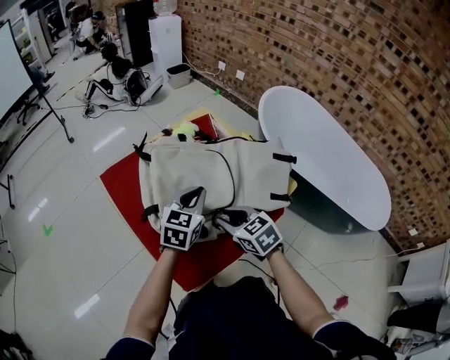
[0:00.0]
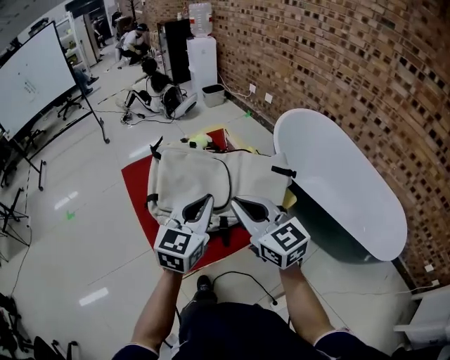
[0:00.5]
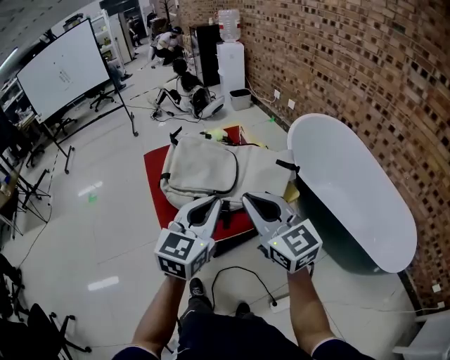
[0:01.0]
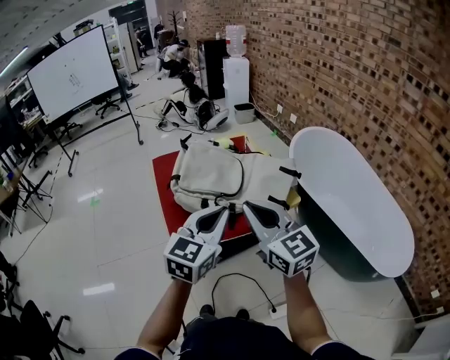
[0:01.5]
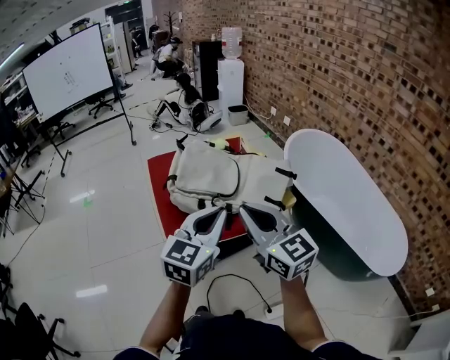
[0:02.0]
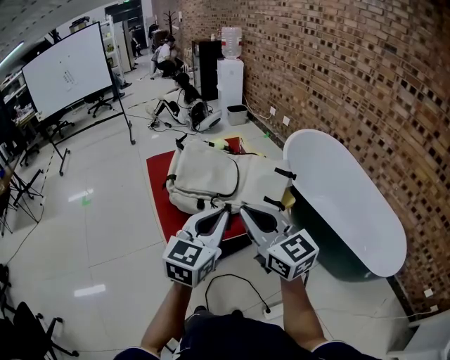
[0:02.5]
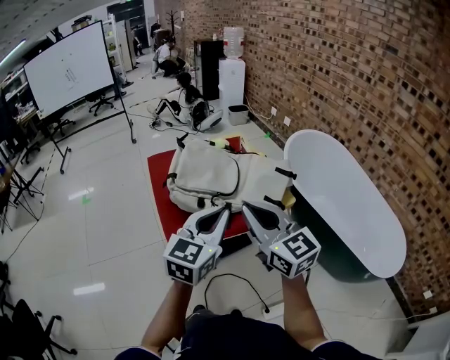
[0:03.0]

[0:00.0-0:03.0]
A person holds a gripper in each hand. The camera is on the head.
0:00.0 to 0:01.5: The left gripper travels backward and upward by approximately 30 cm, and changes its angle by some 20 degrees, while the right gripper moves upward and backward, about 30 cm, tips its fingers upward by roughly 40 degrees, and closes.
0:01.5 to 0:03.0: The grippers stay close to where they were, moving slightly.

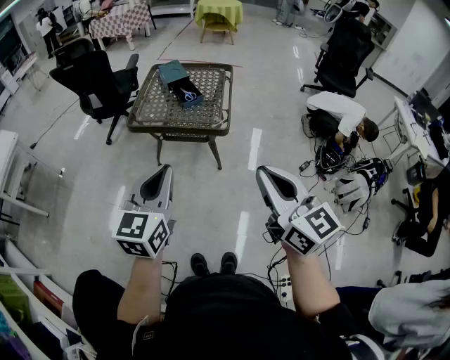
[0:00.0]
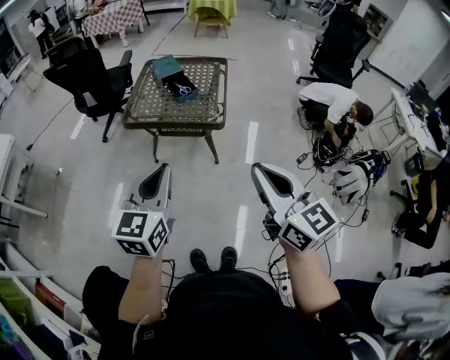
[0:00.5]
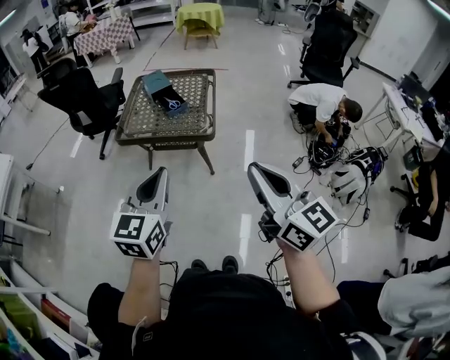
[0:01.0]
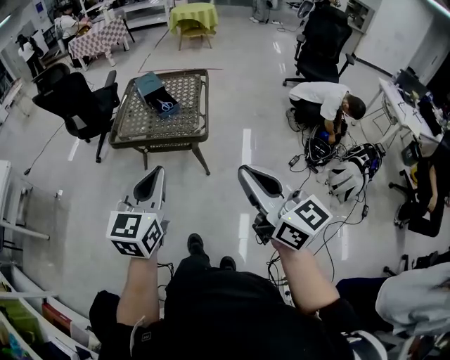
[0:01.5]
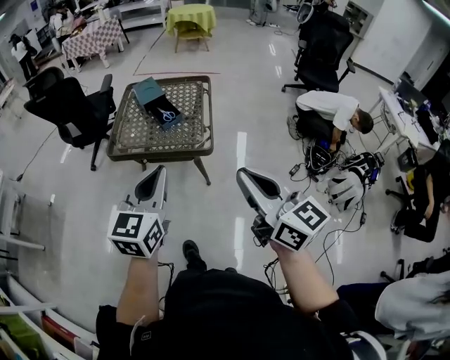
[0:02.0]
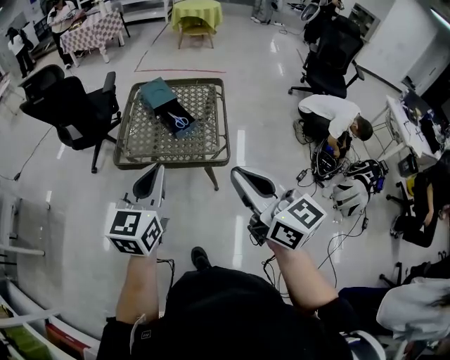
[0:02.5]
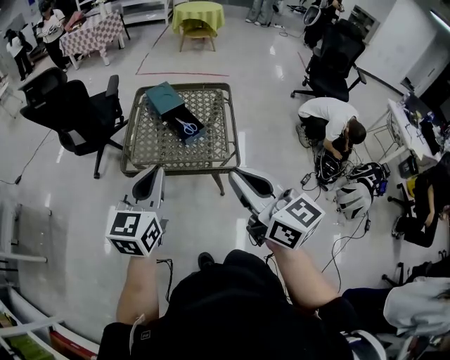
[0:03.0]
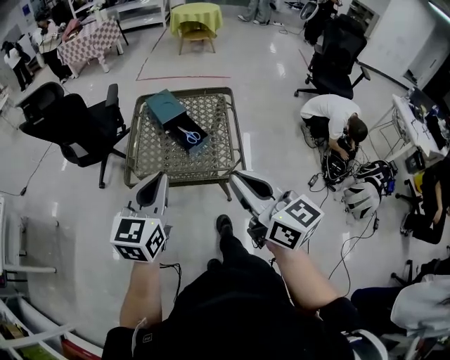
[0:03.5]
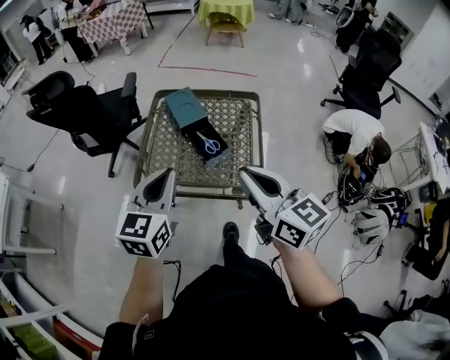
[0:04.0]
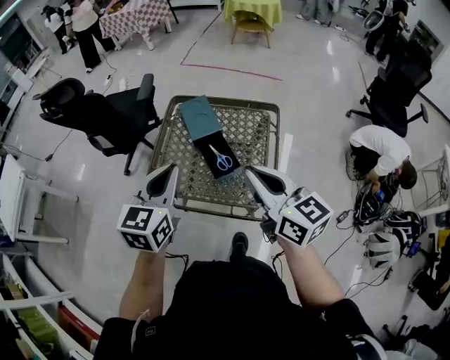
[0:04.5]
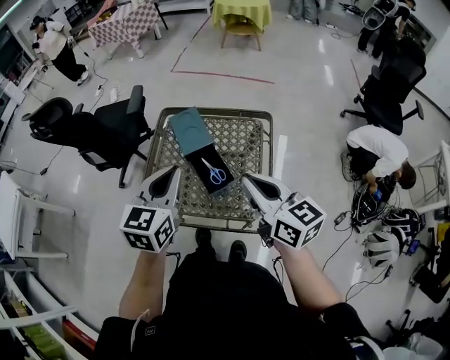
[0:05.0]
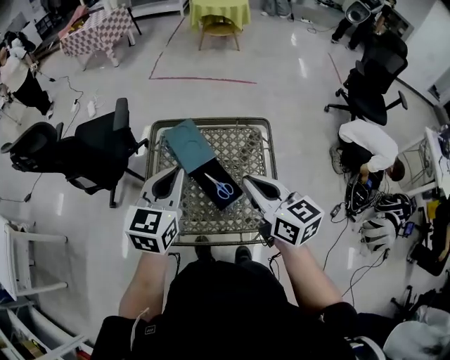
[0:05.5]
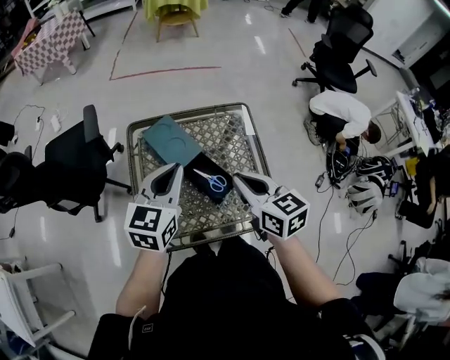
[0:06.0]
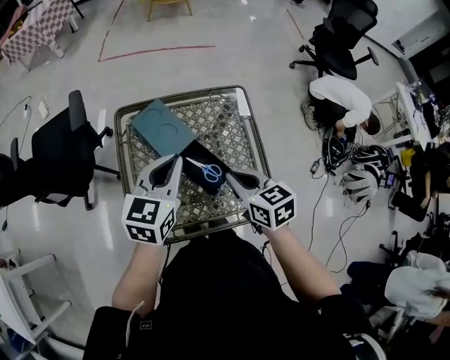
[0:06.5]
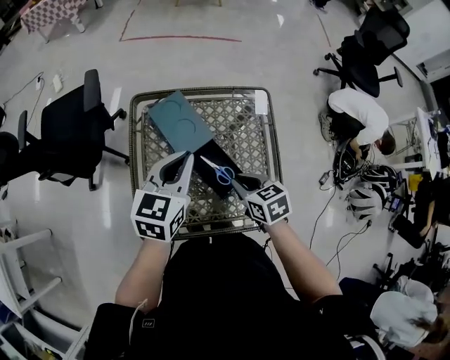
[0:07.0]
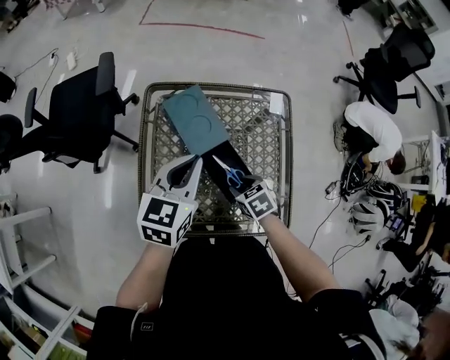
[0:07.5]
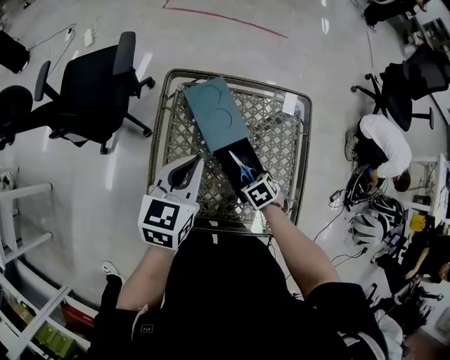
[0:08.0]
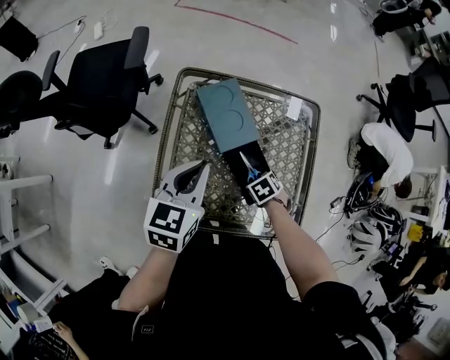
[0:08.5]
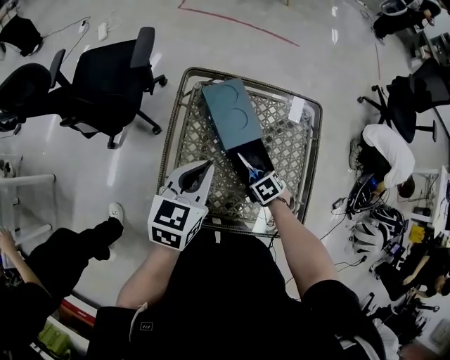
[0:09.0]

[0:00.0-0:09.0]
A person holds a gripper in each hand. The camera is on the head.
0:00.0 to 0:02.0: The two grippers go approximately 10 cm forward.
0:02.0 to 0:04.5: The two grippers go approximately 40 cm forward.
0:04.5 to 0:07.0: The right gripper moves downward and forward, roughly 30 cm, and points its fingers approximately 40 degrees further downward, while the left gripper is displaced forward and downward by roughly 20 cm, and changes its angle by roughly 20 degrees.
0:07.0 to 0:09.0: The right gripper goes approximately 15 cm downward, and tips its fingers downward by some 30 degrees; the left gripper moves roughly 10 cm.

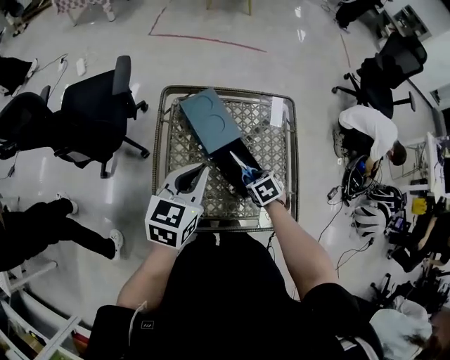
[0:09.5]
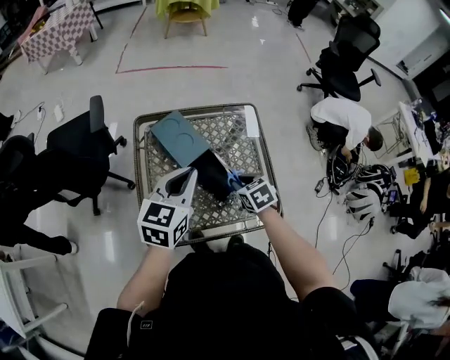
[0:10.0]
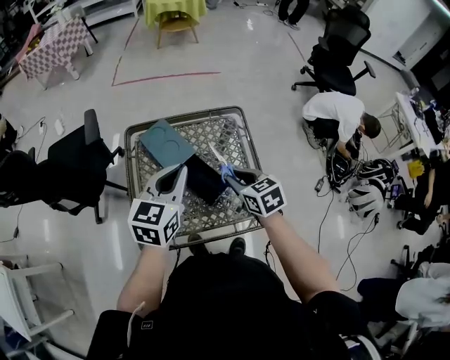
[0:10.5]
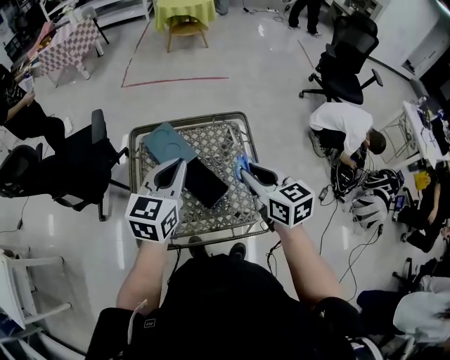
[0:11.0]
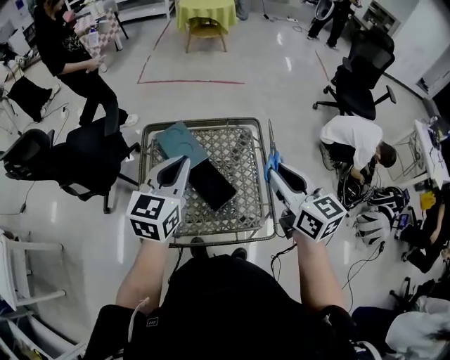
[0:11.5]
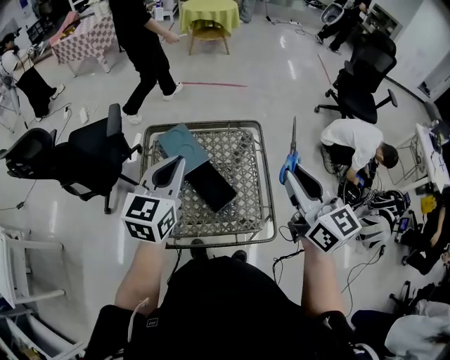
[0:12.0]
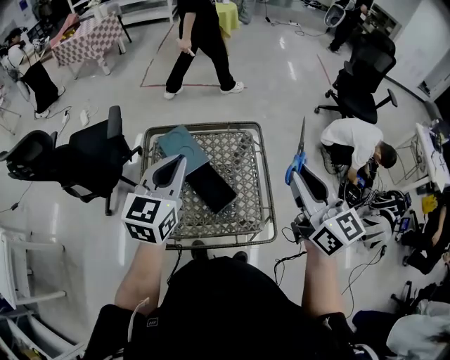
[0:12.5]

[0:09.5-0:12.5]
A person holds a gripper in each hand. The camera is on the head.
0:09.5 to 0:11.0: The right gripper travels upward by roughly 30 cm, and points its fingers approximately 50 degrees further upward. Meanwhile the left gripper goes approximately 15 cm to the right and upward.
0:11.0 to 0:12.5: The left gripper changes place by some 5 cm. The right gripper shifts approximately 15 cm upward and to the right, and swivels some 20 degrees.

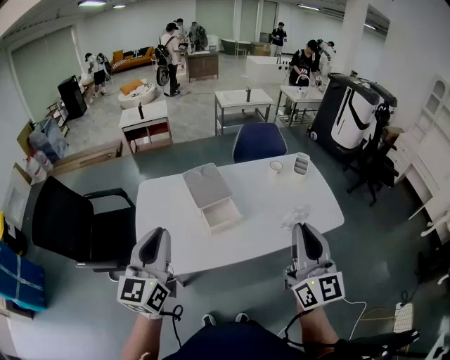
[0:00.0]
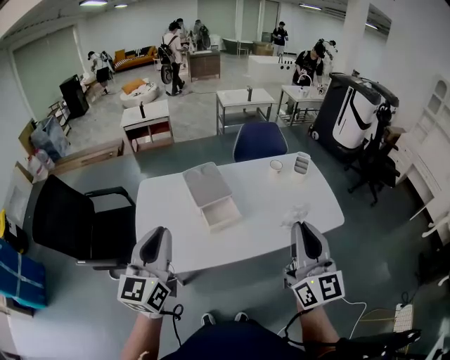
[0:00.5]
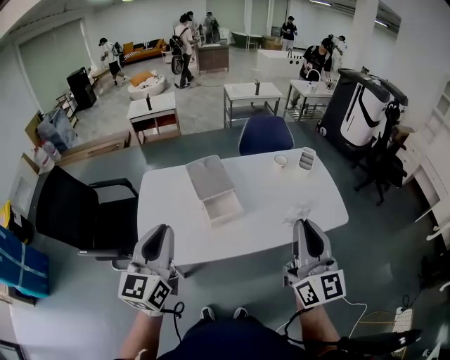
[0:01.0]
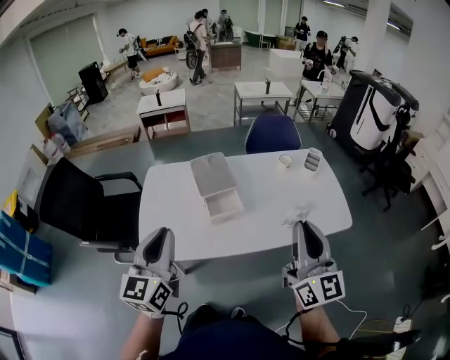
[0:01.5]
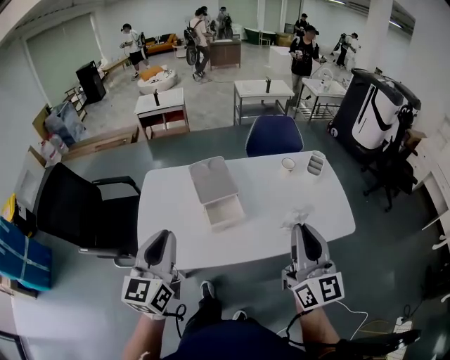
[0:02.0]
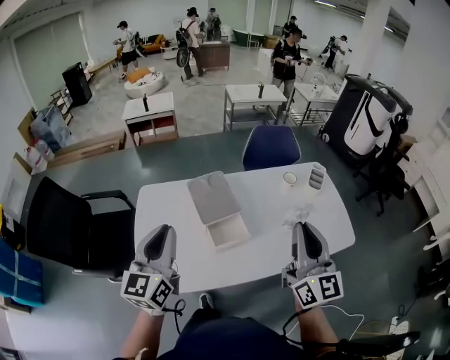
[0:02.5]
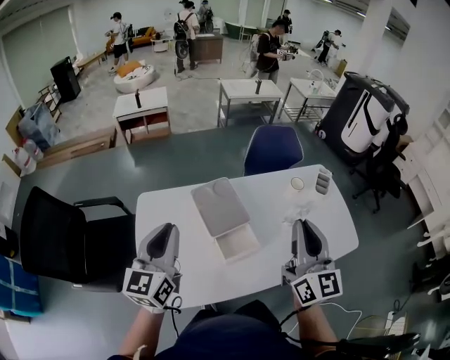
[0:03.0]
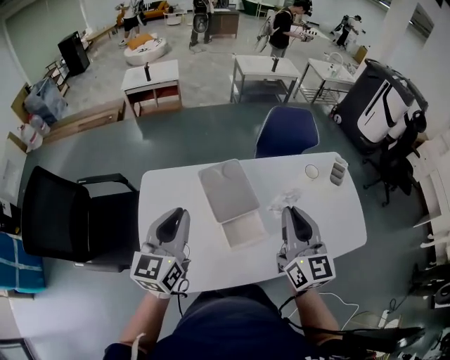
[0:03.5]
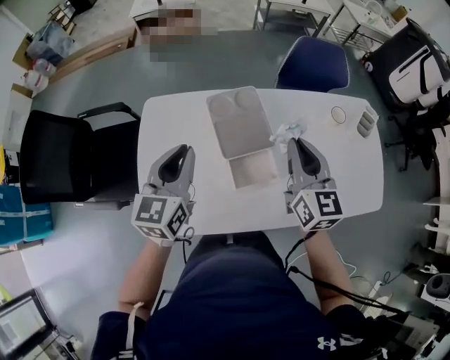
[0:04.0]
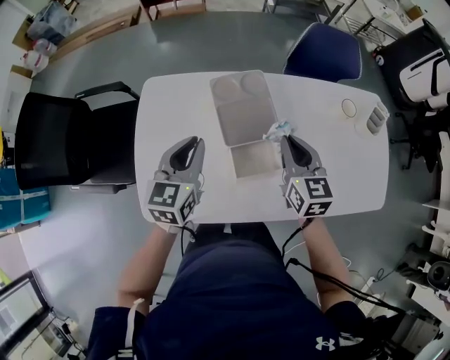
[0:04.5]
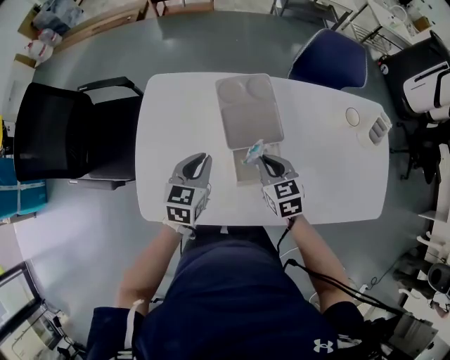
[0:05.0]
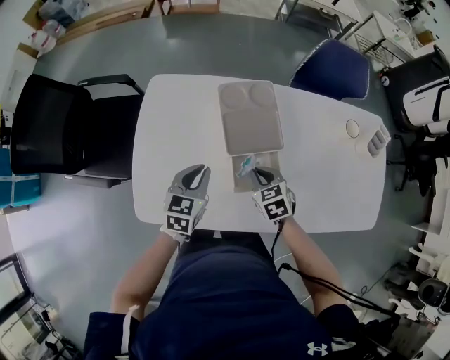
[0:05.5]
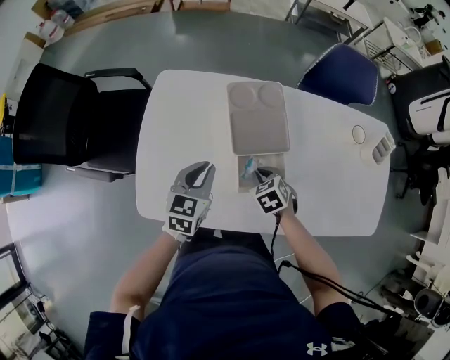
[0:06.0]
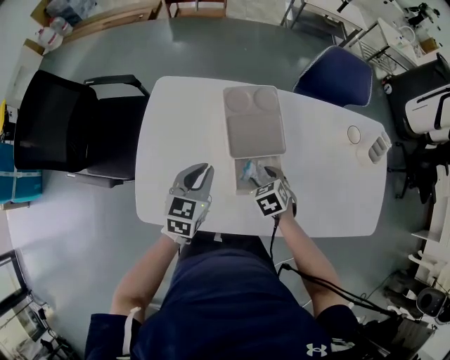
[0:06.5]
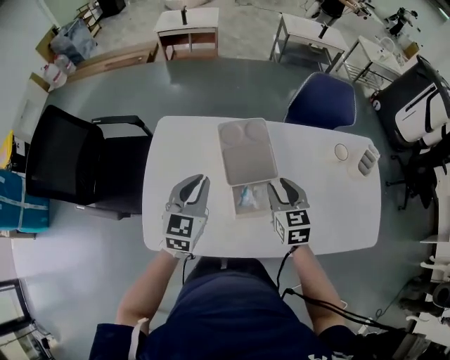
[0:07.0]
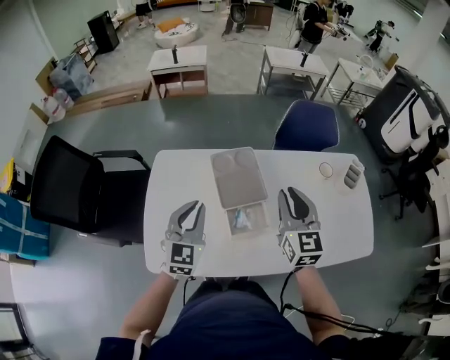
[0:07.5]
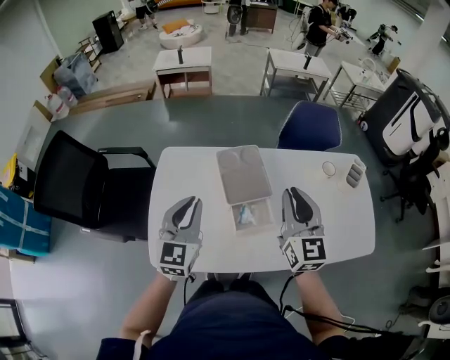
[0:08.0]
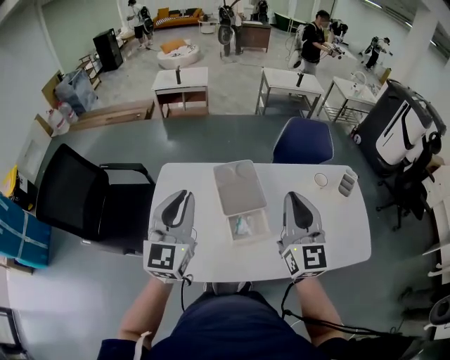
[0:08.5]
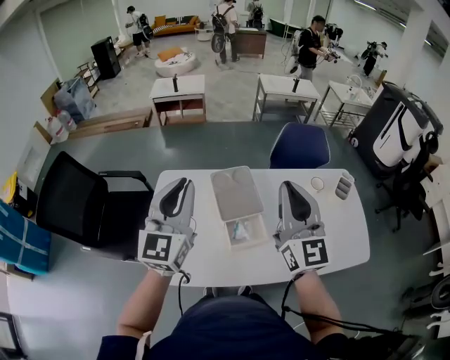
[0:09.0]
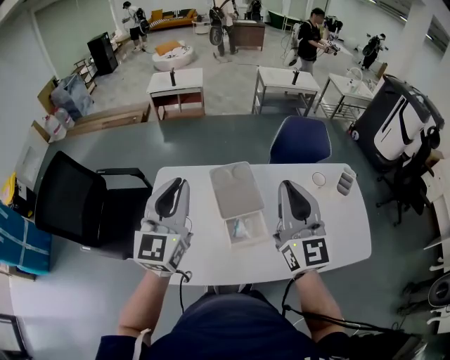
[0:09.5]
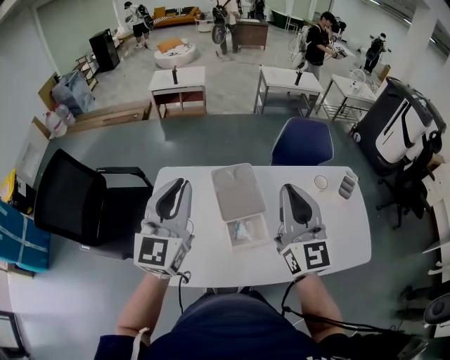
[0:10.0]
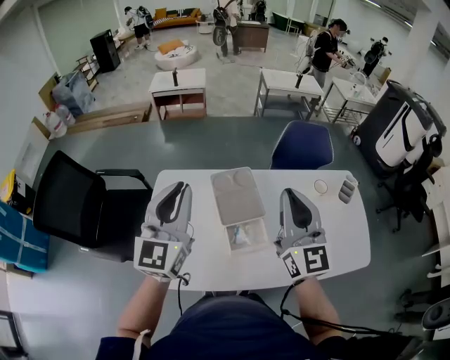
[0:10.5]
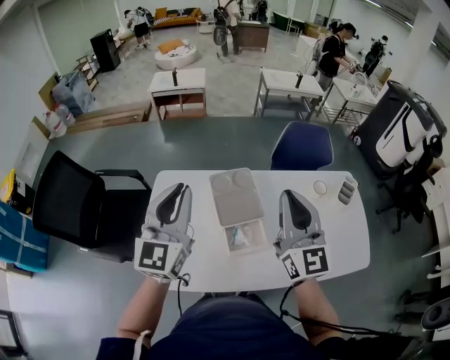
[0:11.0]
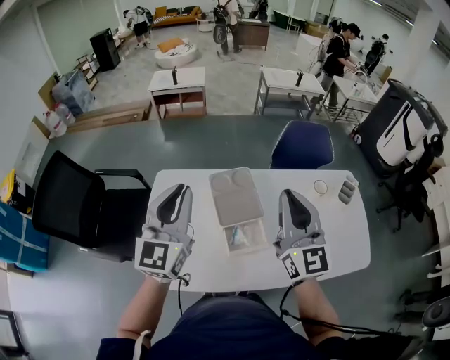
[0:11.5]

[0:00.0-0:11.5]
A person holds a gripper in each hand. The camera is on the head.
0:00.0 to 0:02.0: The left gripper ends up approximately 5 cm from where it was. The right gripper shifts by about 5 cm.
0:02.0 to 0:04.0: The left gripper is displaced forward and downward by some 25 cm. The right gripper travels forward, downward and to the left by approximately 35 cm, and rotates roughly 20 degrees.
0:04.0 to 0:06.0: The left gripper shifts roughly 15 cm downward. The right gripper goes approximately 30 cm downward, and tips its fingers downward by about 50 degrees.
0:06.0 to 0:07.5: The left gripper moves upward, roughly 15 cm, and changes its angle by roughly 30 degrees, while the right gripper shifts some 30 cm upward, angles its fingers upward, by some 60 degrees, and opens and closes again.
0:07.5 to 0:09.5: Both grippers travel together upward, some 15 cm. The right gripper rotates approximately 20 degrees, while the left gripper turns by about 20 degrees.
0:09.5 to 0:11.5: The grippers make only small movements.
